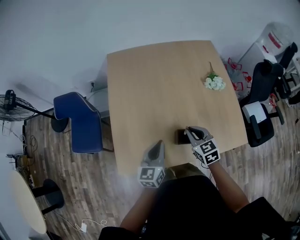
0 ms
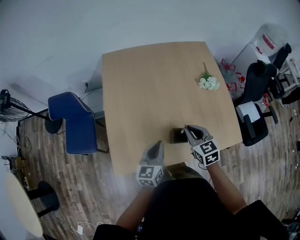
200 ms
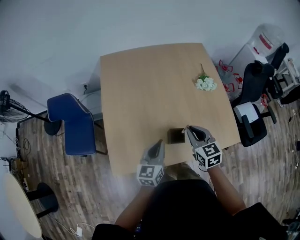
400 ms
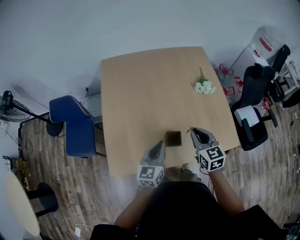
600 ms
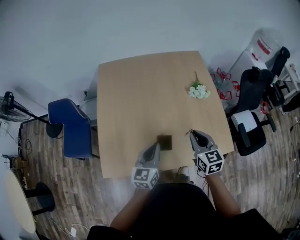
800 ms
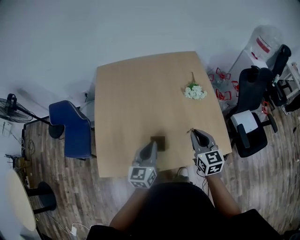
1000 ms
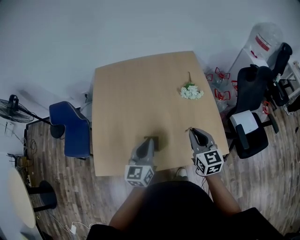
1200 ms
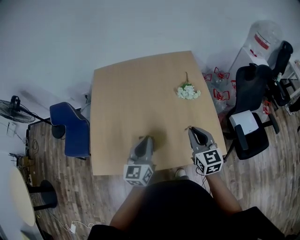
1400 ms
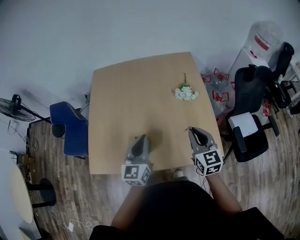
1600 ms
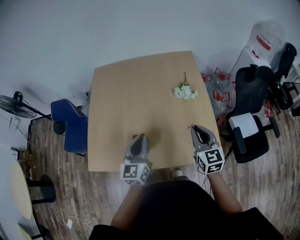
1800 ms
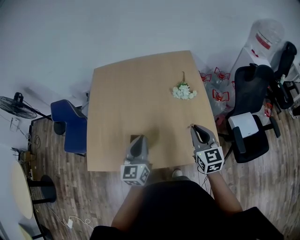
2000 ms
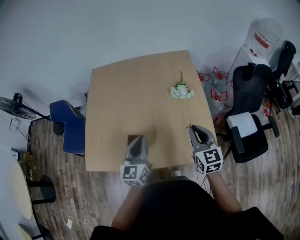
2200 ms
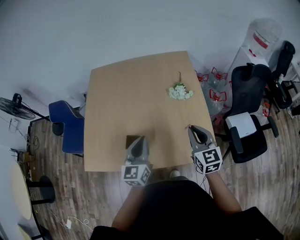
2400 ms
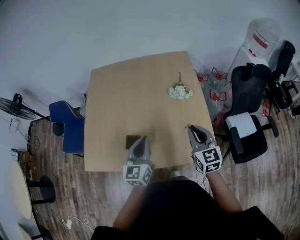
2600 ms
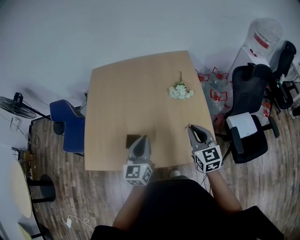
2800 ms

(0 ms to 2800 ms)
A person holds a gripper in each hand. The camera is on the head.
0 ms - 1400 ms: Both grippers move to the right, about 25 cm. The right gripper turns by approximately 20 degrees.
1400 ms - 2800 ms: Both grippers move to the right, some 10 cm.

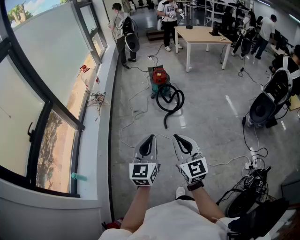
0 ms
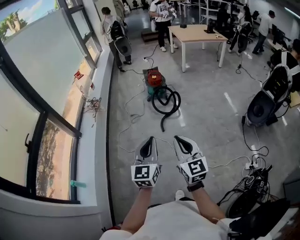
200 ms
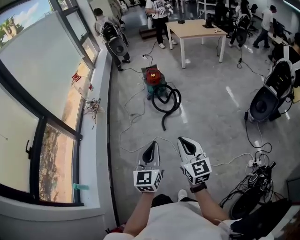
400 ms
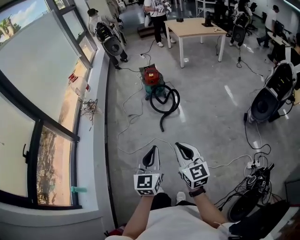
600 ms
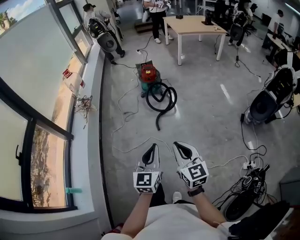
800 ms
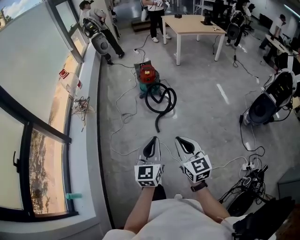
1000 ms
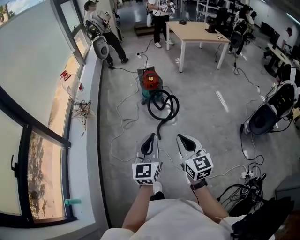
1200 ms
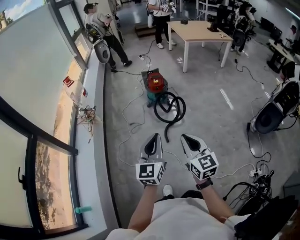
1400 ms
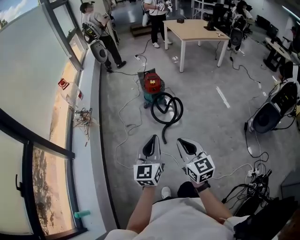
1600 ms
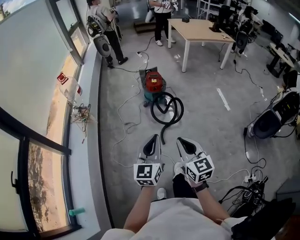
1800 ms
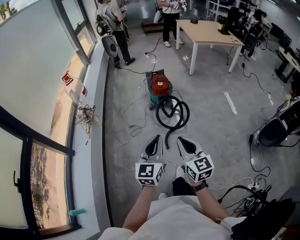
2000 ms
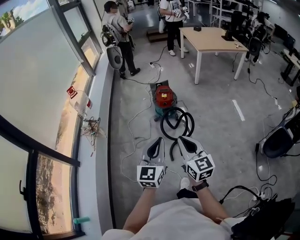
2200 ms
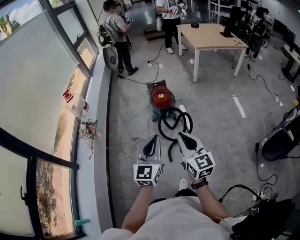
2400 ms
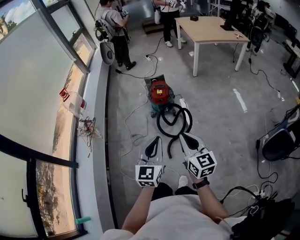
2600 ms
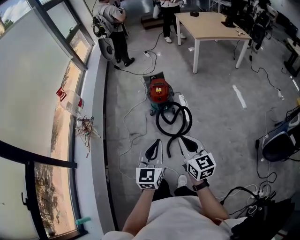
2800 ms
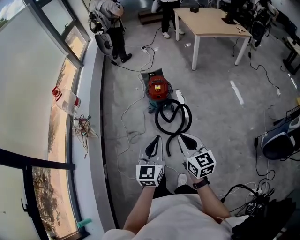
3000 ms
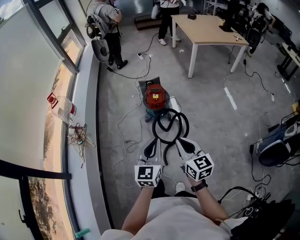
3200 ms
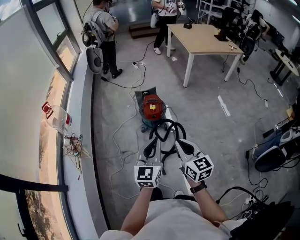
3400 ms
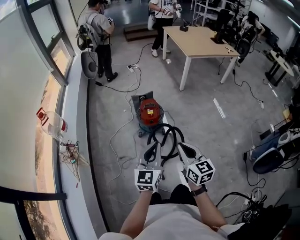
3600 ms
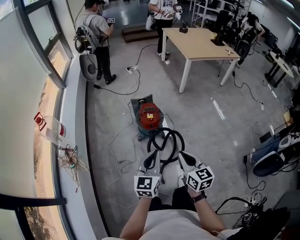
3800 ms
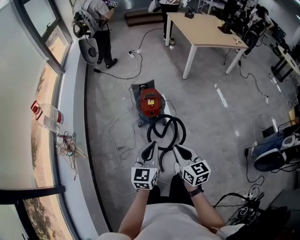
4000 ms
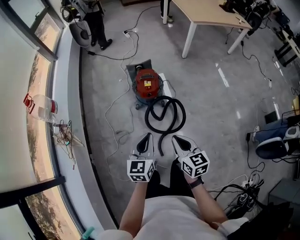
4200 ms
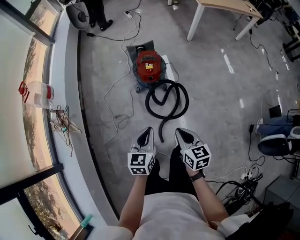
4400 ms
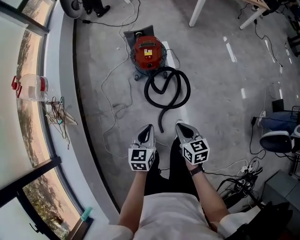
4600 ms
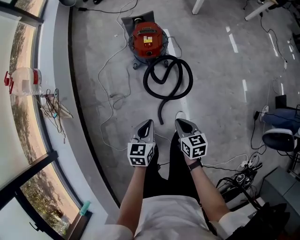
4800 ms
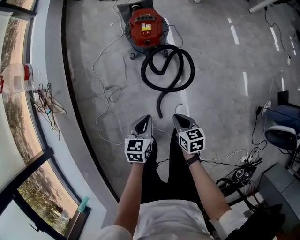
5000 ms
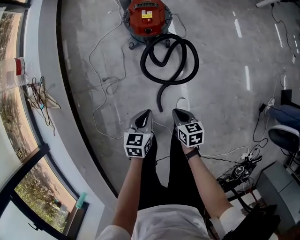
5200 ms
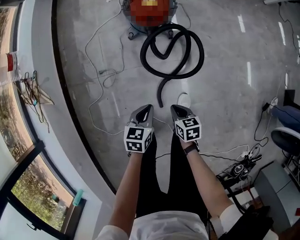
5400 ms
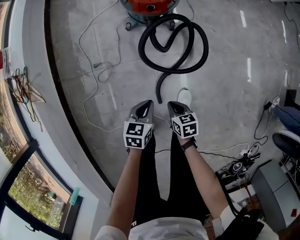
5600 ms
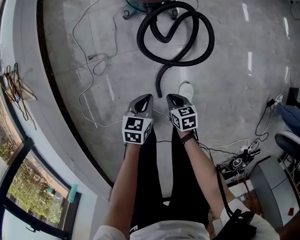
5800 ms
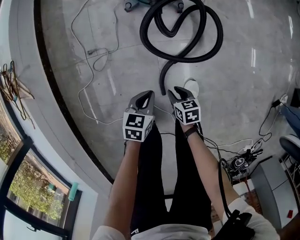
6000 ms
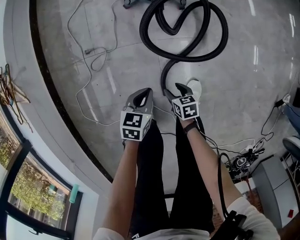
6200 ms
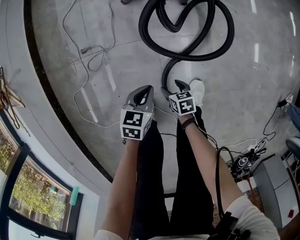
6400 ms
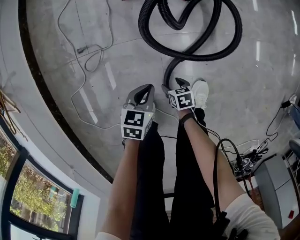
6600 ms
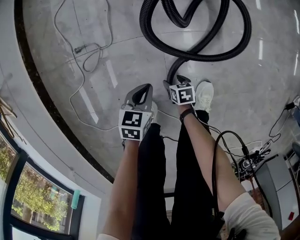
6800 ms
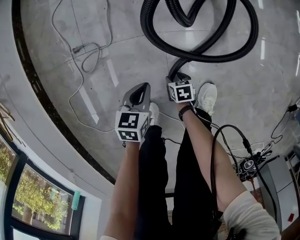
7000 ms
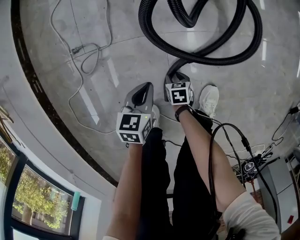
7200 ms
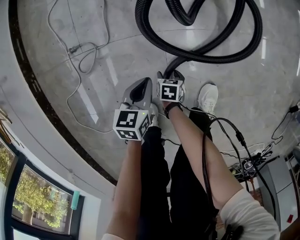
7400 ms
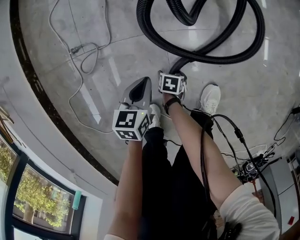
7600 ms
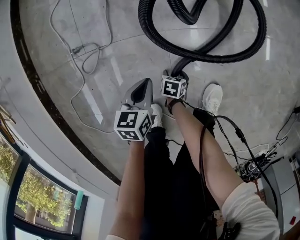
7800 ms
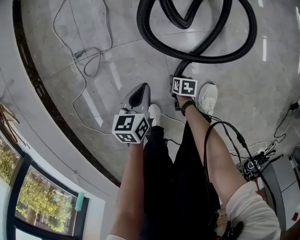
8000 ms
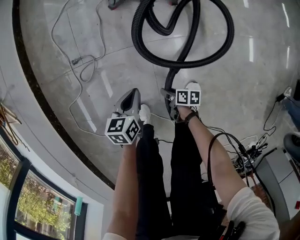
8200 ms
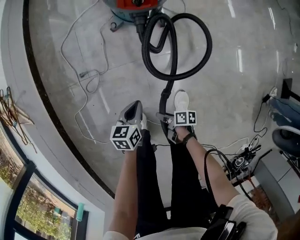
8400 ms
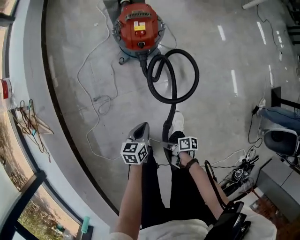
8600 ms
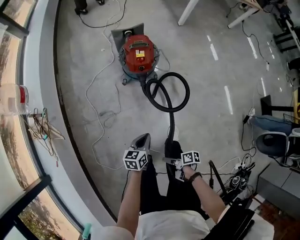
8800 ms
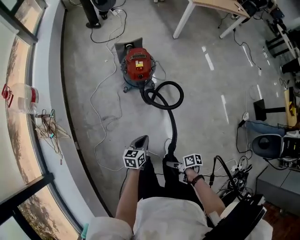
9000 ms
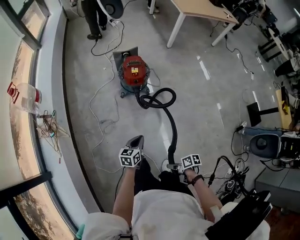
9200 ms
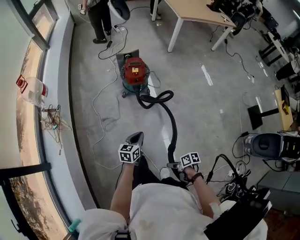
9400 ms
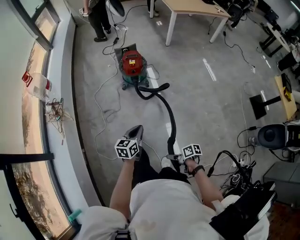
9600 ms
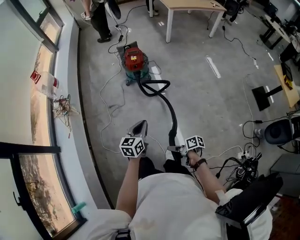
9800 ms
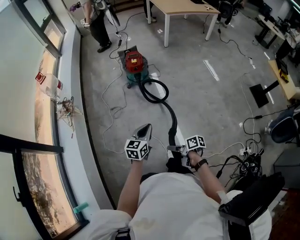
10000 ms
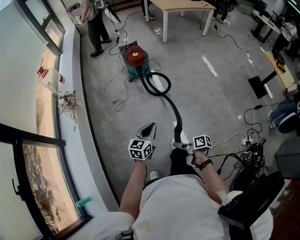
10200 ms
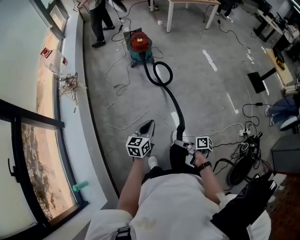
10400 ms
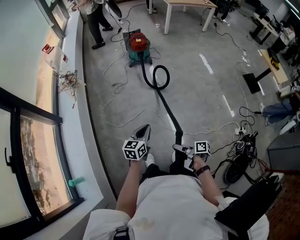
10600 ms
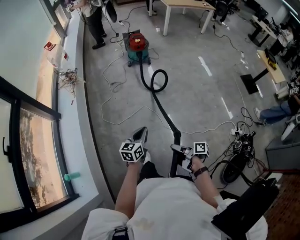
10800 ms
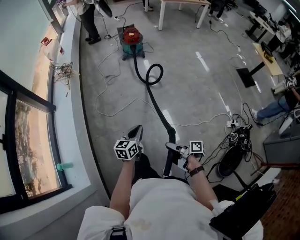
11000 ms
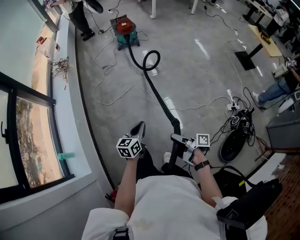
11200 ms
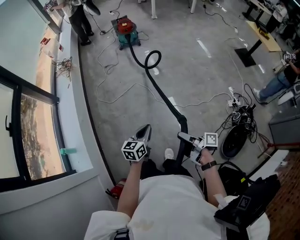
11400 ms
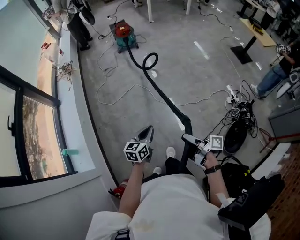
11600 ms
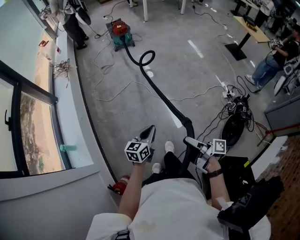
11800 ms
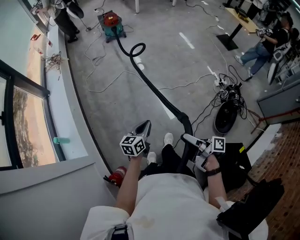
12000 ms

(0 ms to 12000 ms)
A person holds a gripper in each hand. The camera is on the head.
0 ms - 1600 ms: The grippers both shift forward by roughly 35 cm.
1600 ms - 3000 ms: Both grippers travel together forward, about 30 cm.
3000 ms - 4400 ms: The grippers both shift downward and forward by approximately 25 cm. The left gripper rotates some 20 degrees; the right gripper rotates approximately 20 degrees.
4400 ms - 6000 ms: Both grippers travel together downward, some 50 cm. The left gripper swivels about 30 degrees; the right gripper changes its angle by approximately 30 degrees.
6000 ms - 7600 ms: The right gripper moves downward, about 30 cm, rotates approximately 30 degrees, and opens its fingers. Meanwhile the left gripper is displaced downward by roughly 20 cm.
7600 ms - 9000 ms: Both grippers move upward, roughly 60 cm. The right gripper tilts its fingers about 40 degrees upward, and closes its fingers.
9000 ms - 10400 ms: The two grippers travel together, backward, about 50 cm. The right gripper rotates approximately 30 degrees, while the left gripper turns by roughly 20 degrees.
10400 ms - 12000 ms: The pair of grippers is taken backward, roughly 60 cm. The right gripper changes its angle by about 20 degrees.

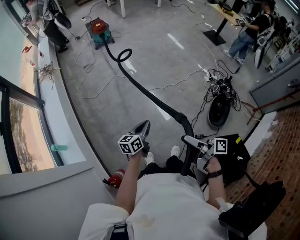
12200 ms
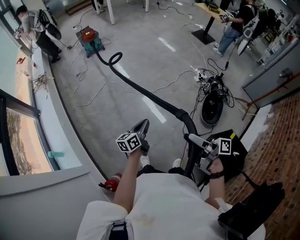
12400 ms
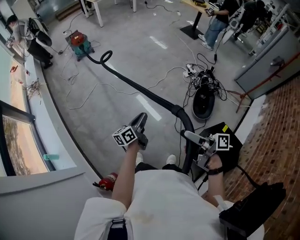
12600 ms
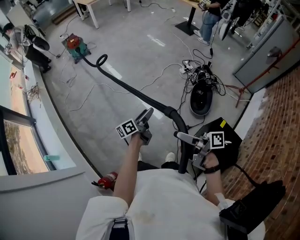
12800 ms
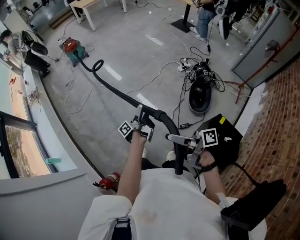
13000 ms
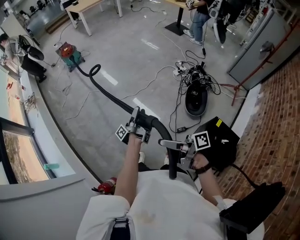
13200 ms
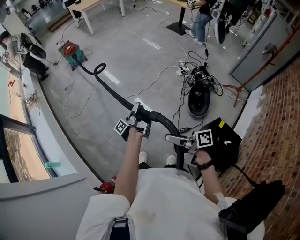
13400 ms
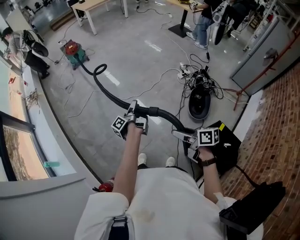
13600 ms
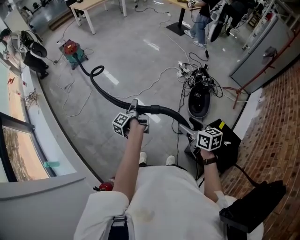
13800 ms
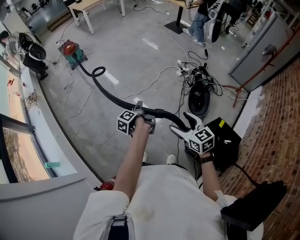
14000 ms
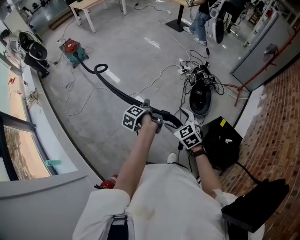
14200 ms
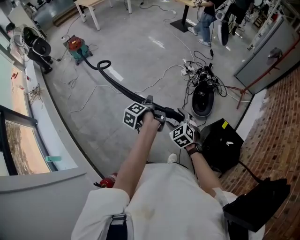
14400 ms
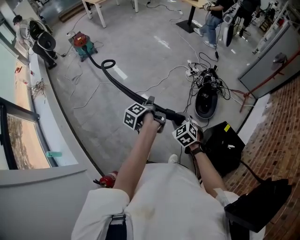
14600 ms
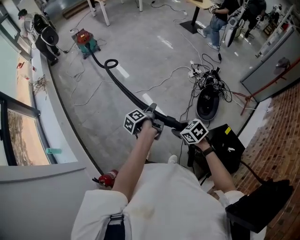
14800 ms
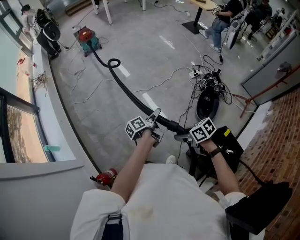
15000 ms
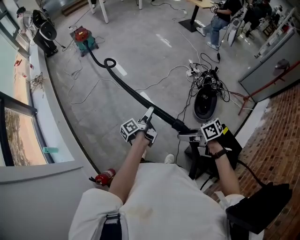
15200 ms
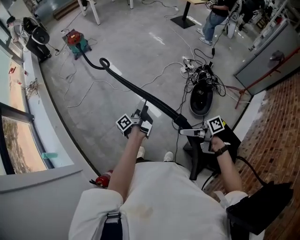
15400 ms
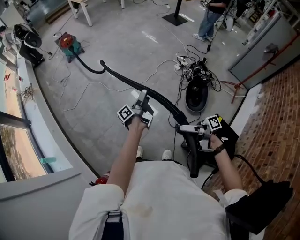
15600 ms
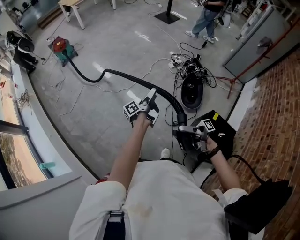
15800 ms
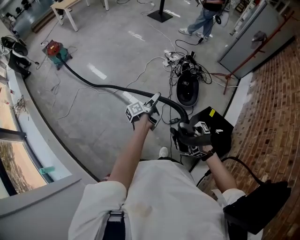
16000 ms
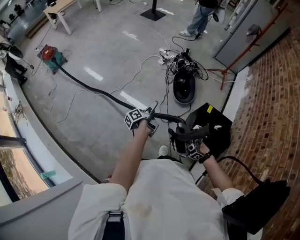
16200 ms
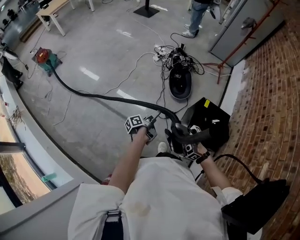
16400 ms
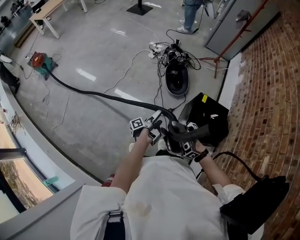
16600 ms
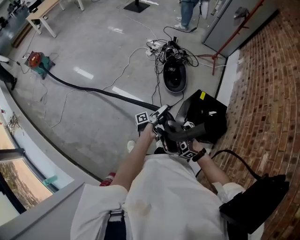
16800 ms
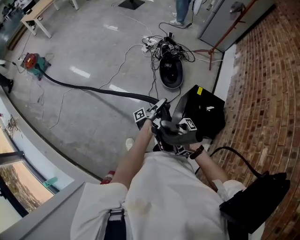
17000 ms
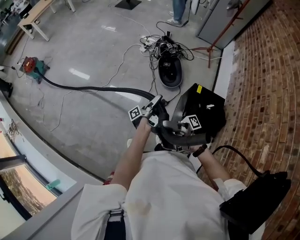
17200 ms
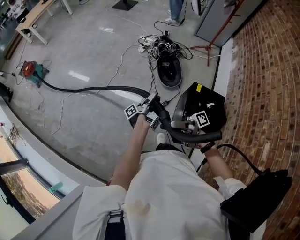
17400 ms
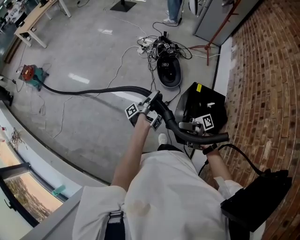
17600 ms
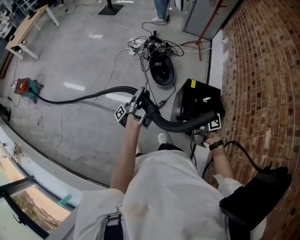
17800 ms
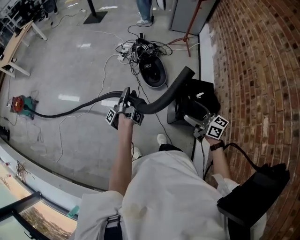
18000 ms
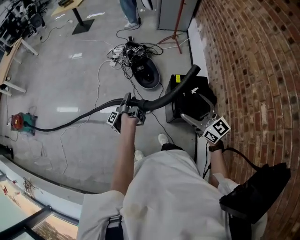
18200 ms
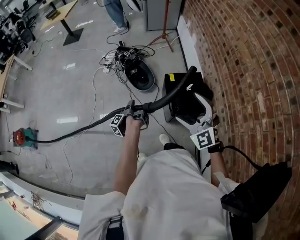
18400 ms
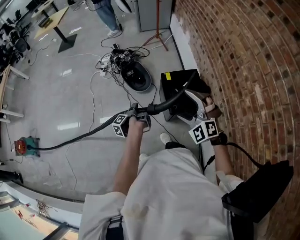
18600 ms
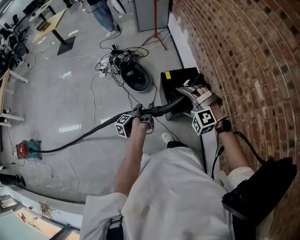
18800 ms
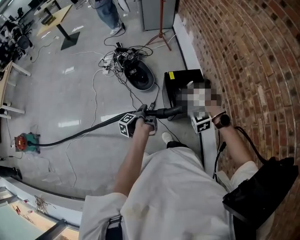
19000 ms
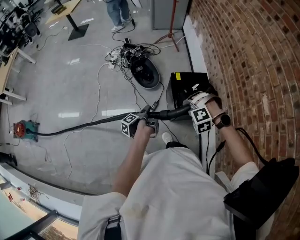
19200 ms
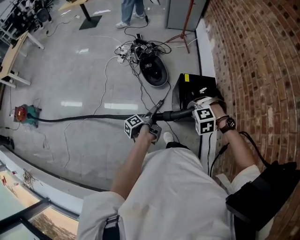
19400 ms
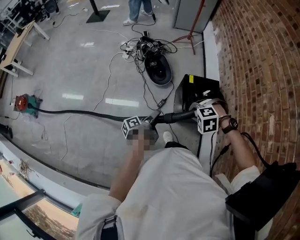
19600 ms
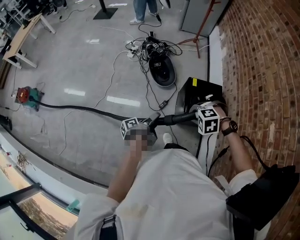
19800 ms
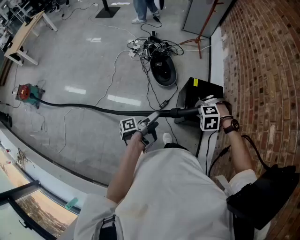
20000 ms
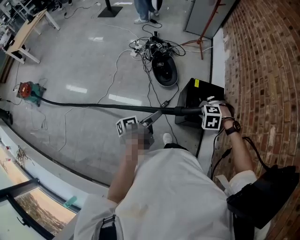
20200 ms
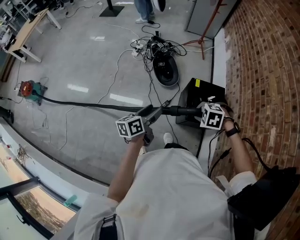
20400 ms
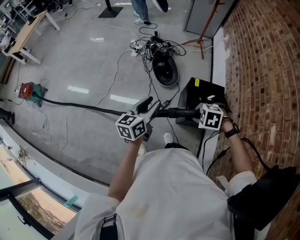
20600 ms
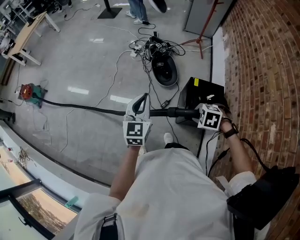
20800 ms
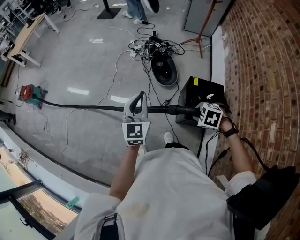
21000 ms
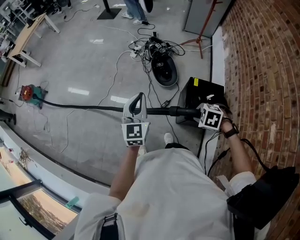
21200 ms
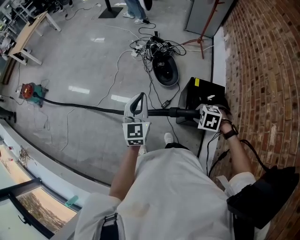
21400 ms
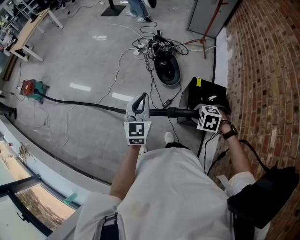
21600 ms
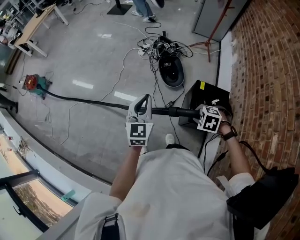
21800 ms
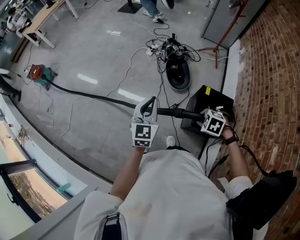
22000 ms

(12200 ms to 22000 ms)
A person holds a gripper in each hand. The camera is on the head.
12200 ms - 13600 ms: The right gripper heads to the right and backward, covering some 20 cm, and turns by some 30 degrees; the left gripper travels to the right by some 20 cm, twists about 60 degrees counterclockwise, seen from behind, and opens up.
13600 ms - 15000 ms: The right gripper shifts approximately 5 cm downward, and turns by roughly 40 degrees. The left gripper shifts by roughly 10 cm, and changes its angle by roughly 30 degrees.
15000 ms - 16400 ms: The left gripper shifts by some 20 cm, and swivels approximately 30 degrees. The right gripper moves upward, roughly 10 cm, and angles its fingers upward, by about 70 degrees.
16400 ms - 17800 ms: The left gripper heads upward and forward, covering some 15 cm, swivels some 40 degrees, and closes; the right gripper heads to the right, covering about 10 cm, rolls counterclockwise, seen from behind, by about 60 degrees, and opens its fingers.
17800 ms - 19200 ms: The right gripper ends up roughly 10 cm from where it was, tilts its fingers some 70 degrees downward, and closes up. The left gripper moves some 15 cm, and tilts its fingers about 40 degrees downward.
19200 ms - 20600 ms: The left gripper heads upward, covering about 20 cm, twists about 80 degrees clockwise, seen from behind, and opens, then closes once more. The right gripper turns by about 30 degrees.
20600 ms - 22000 ms: The left gripper swivels roughly 40 degrees, and closes its fingers.
